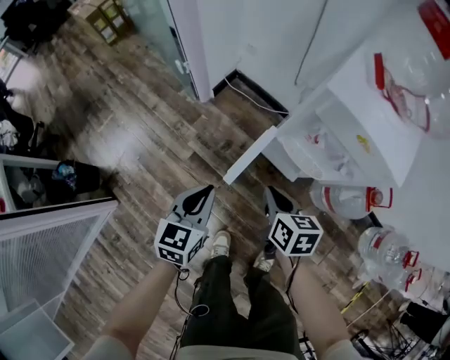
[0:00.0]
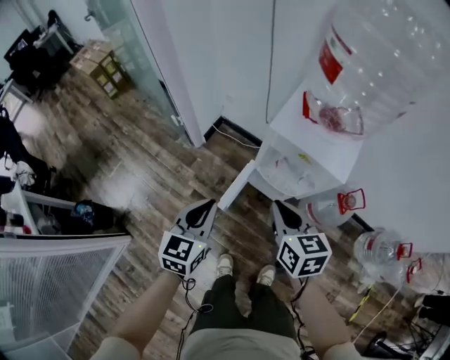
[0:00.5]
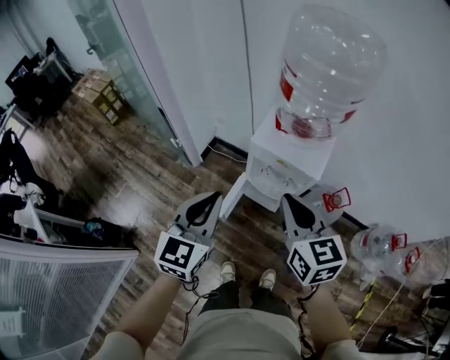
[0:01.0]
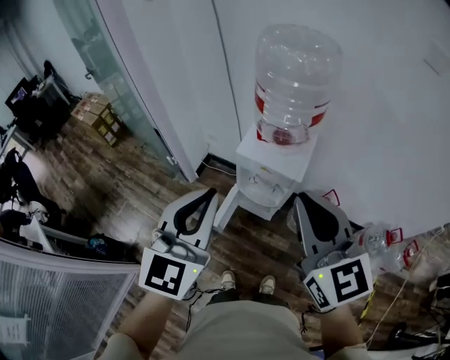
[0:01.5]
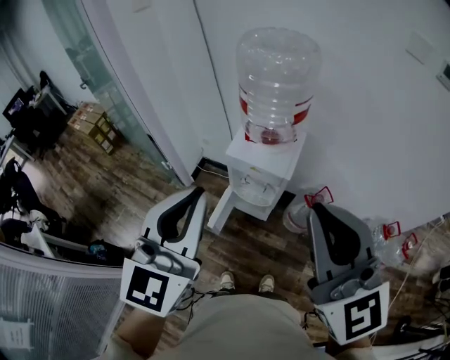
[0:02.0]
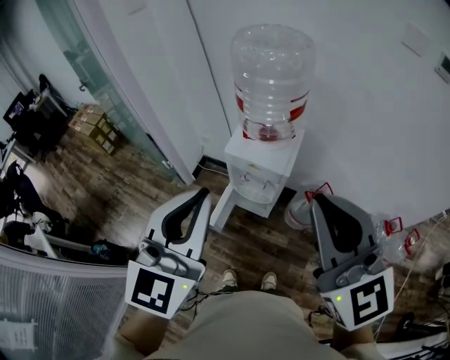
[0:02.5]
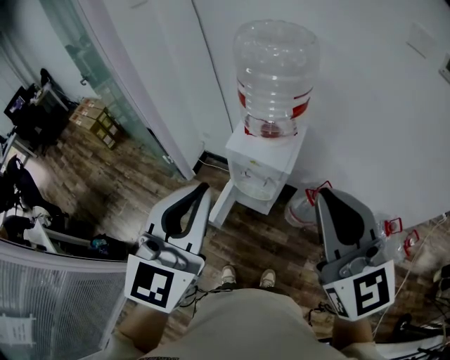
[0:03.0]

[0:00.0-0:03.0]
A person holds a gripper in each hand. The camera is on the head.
0:00.0 to 0:01.5: Both grippers travel together upward, about 60 cm. The left gripper changes its angle by some 40 degrees. The right gripper tilts its fingers approximately 40 degrees upward.
0:01.5 to 0:03.0: The left gripper travels upward by approximately 5 cm, while the right gripper heads to the right and upward, covering some 10 cm.

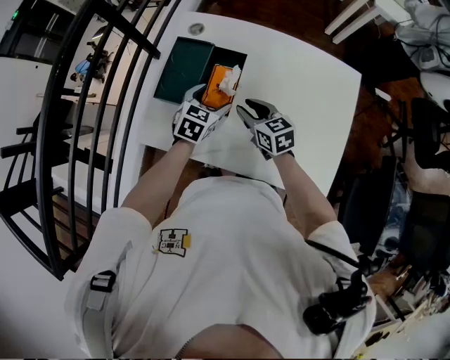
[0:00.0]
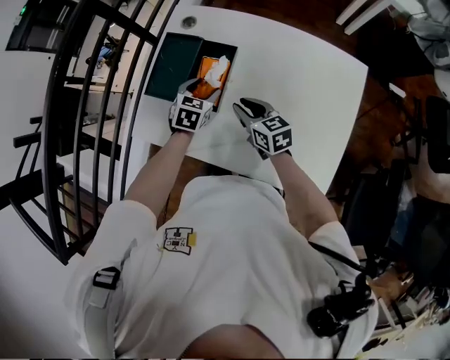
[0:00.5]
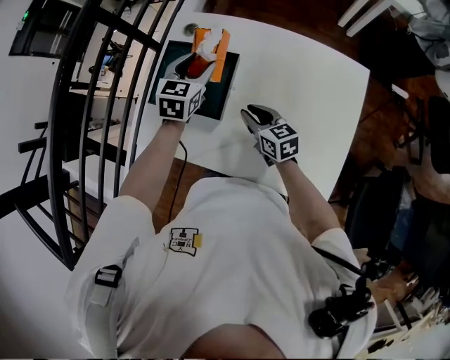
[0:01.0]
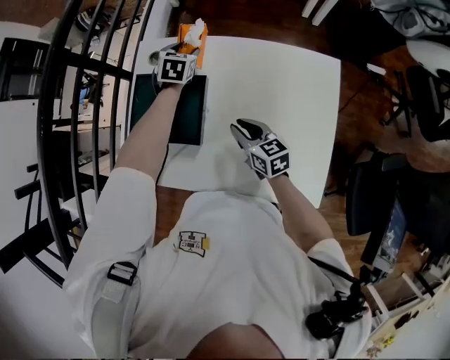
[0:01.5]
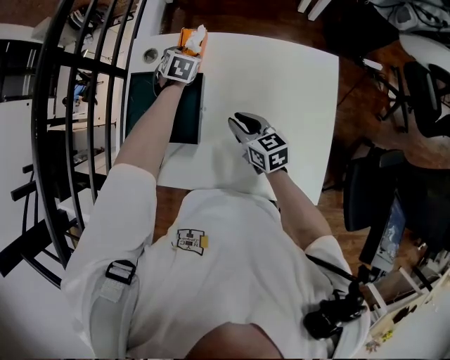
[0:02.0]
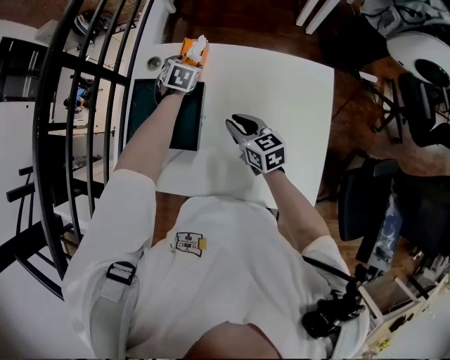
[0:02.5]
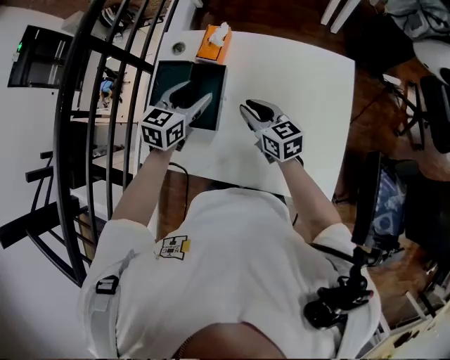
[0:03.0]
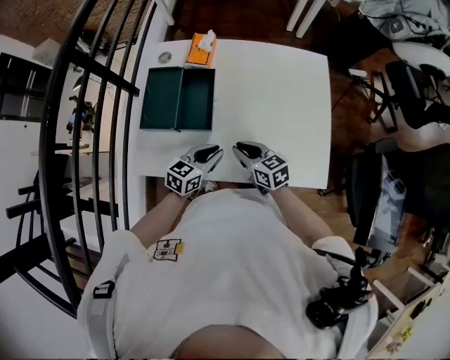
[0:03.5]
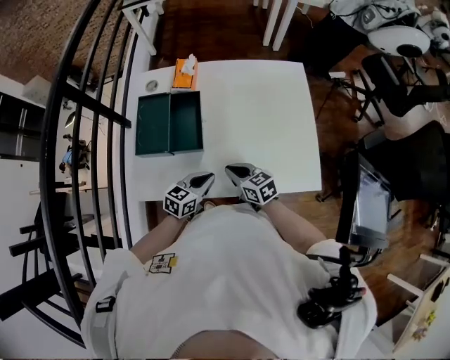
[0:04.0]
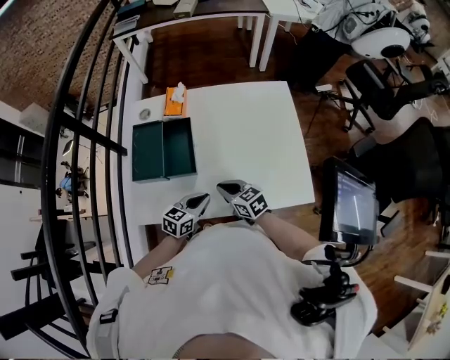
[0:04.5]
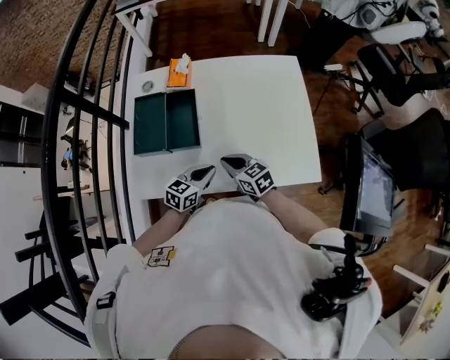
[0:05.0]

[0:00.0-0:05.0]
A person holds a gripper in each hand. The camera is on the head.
0:00.0 to 0:02.5: The left gripper travels forward and to the right by about 25 cm; the right gripper is displaced to the right by roughly 10 cm.
0:02.5 to 0:05.0: The left gripper reaches approximately 15 cm upward, then returns, changes its angle by some 50 degrees, and closes up; the right gripper goes upward and returns, about 5 cm each way.

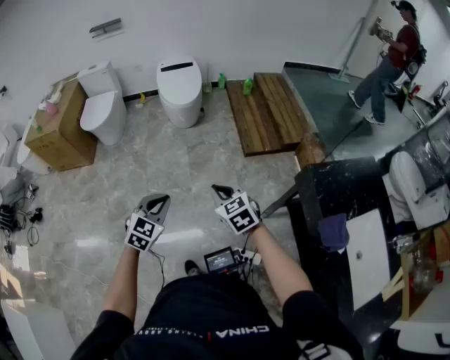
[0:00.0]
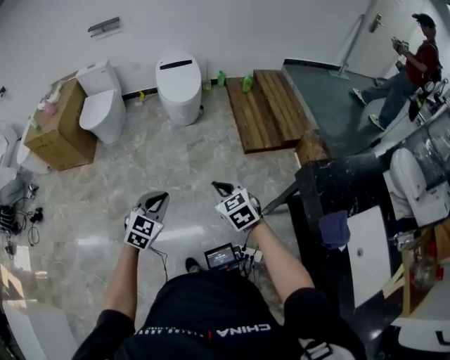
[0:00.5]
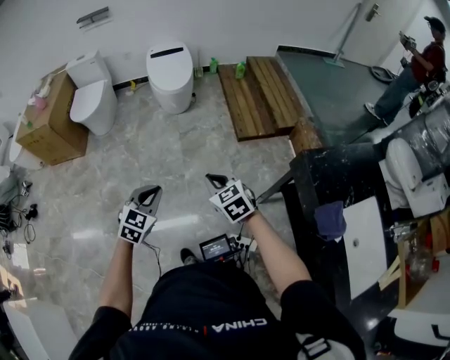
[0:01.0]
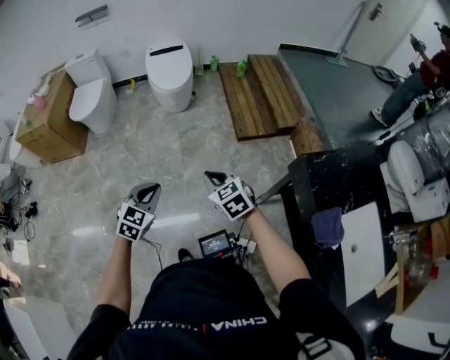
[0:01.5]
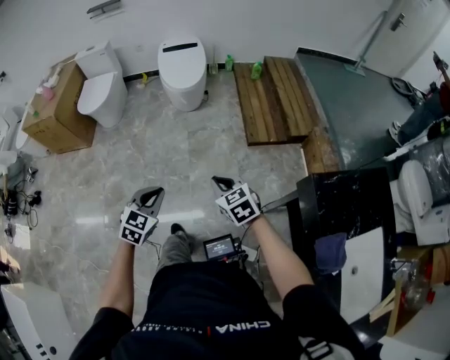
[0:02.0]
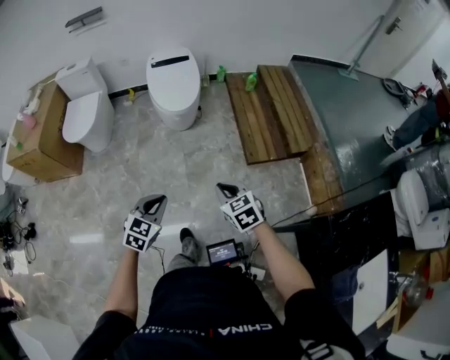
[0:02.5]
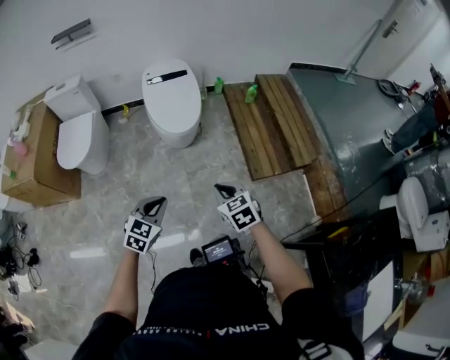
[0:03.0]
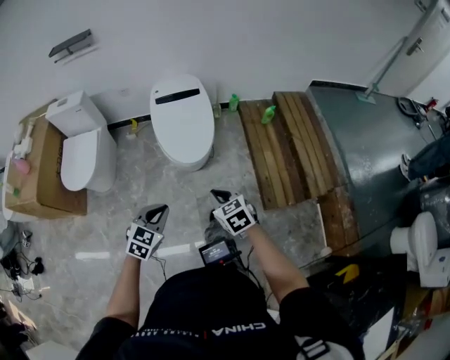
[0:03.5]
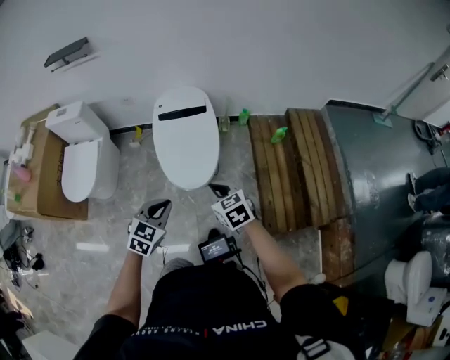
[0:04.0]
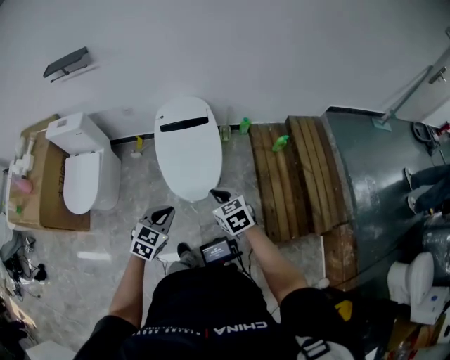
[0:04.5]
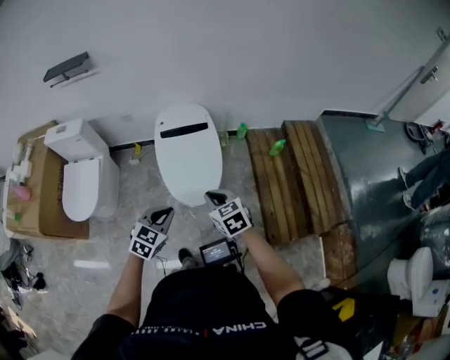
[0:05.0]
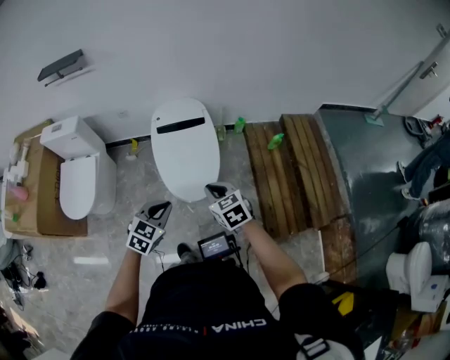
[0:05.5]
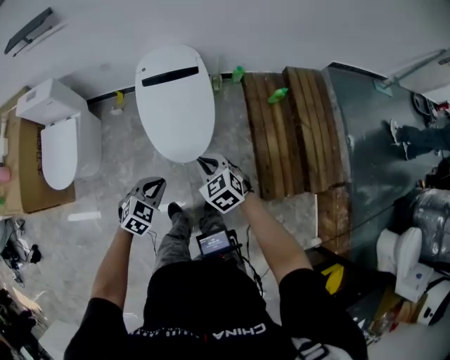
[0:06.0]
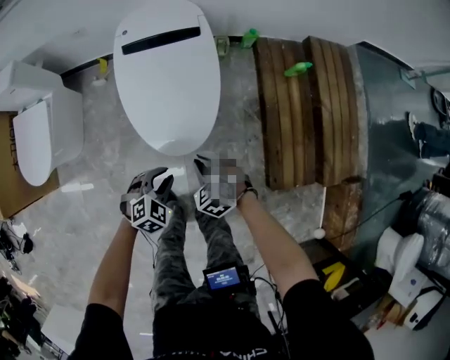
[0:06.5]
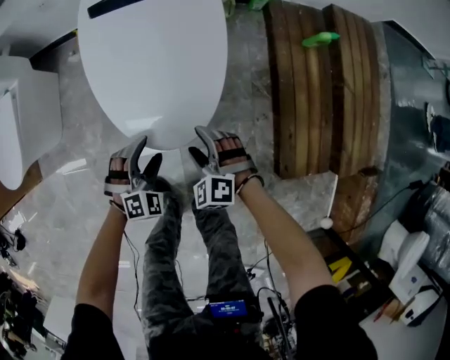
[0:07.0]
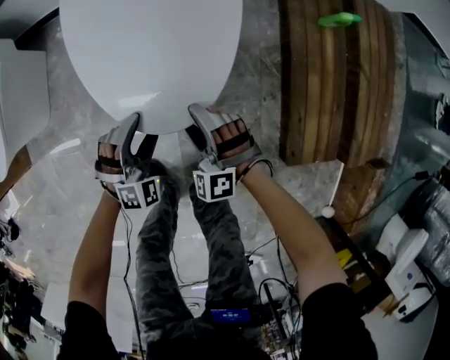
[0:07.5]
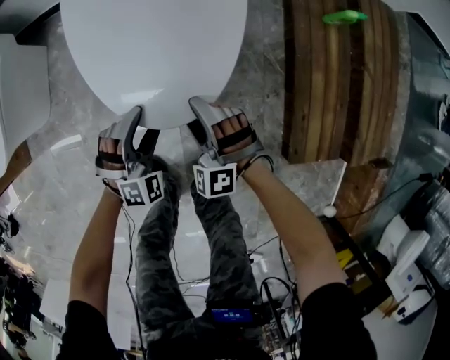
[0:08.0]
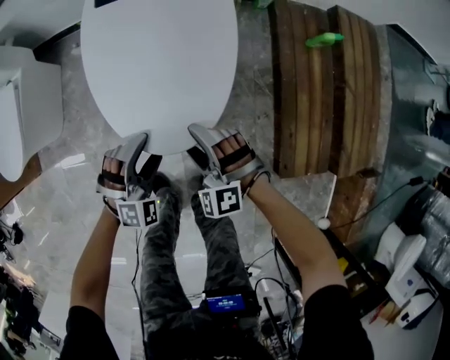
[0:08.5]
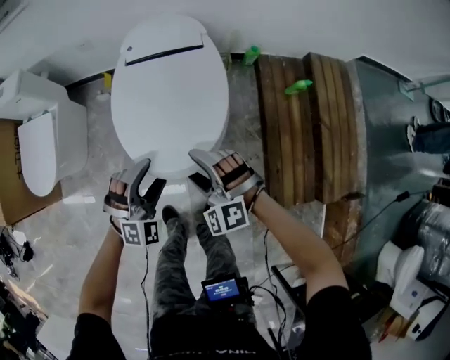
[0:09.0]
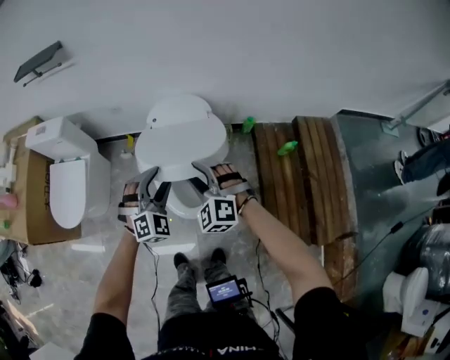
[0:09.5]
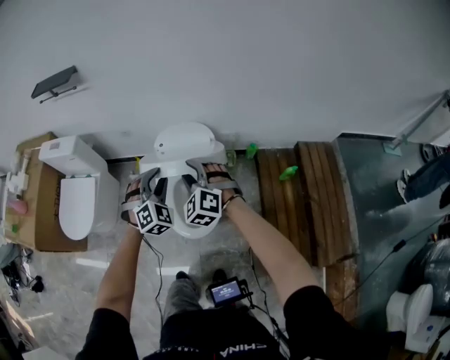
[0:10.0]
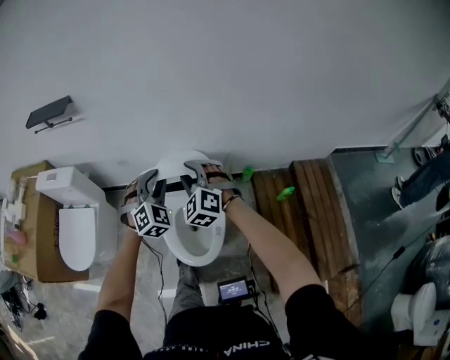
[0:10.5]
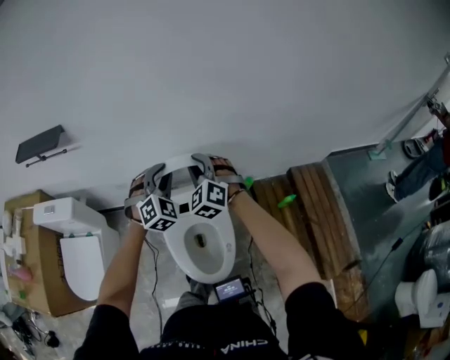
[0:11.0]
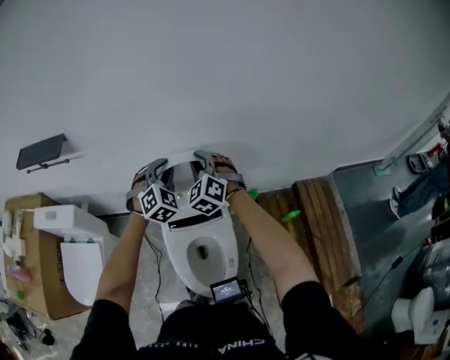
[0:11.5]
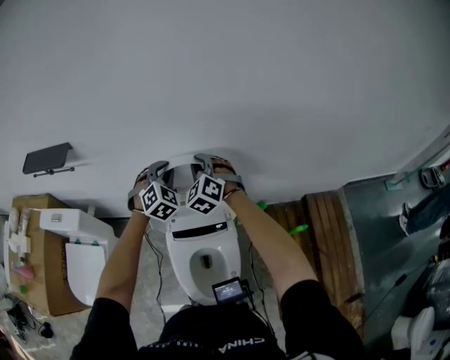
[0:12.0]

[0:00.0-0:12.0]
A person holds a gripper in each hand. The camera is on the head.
0:00.0 to 0:02.0: The right gripper travels forward and downward by approximately 10 cm, while the left gripper shifts some 5 cm forward.
0:02.0 to 0:04.0: The two grippers travel together, forward, approximately 70 cm.
0:04.0 to 0:06.0: The grippers both shift downward and forward by roughly 10 cm.
0:06.0 to 0:08.0: The two grippers go roughly 40 cm downward. The left gripper swivels roughly 40 degrees, and opens. The right gripper twists about 50 degrees counterclockwise, seen from behind, and opens.
0:08.0 to 0:10.0: The grippers both shift upward by some 50 cm. The left gripper swivels about 20 degrees, and closes its fingers. Meanwhile the right gripper closes up.
0:10.0 to 0:12.0: The grippers both shift forward by some 40 cm.

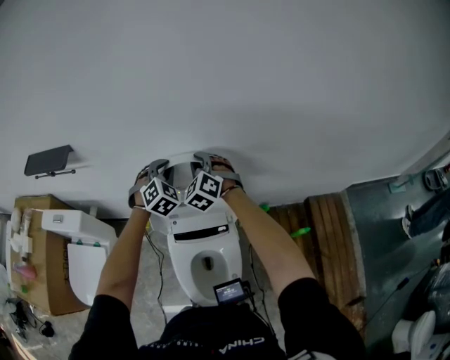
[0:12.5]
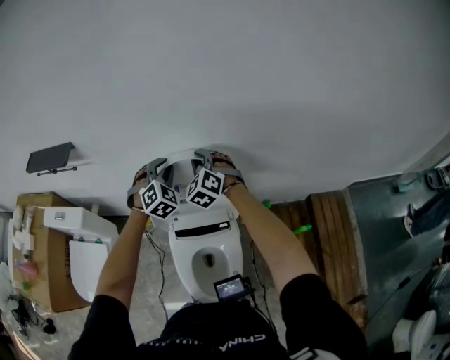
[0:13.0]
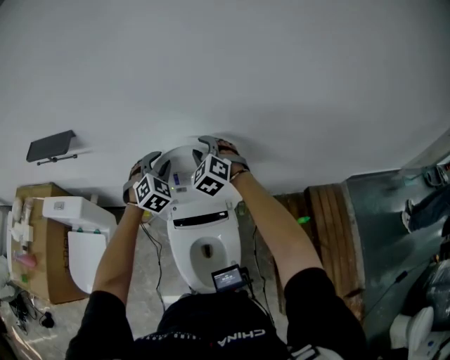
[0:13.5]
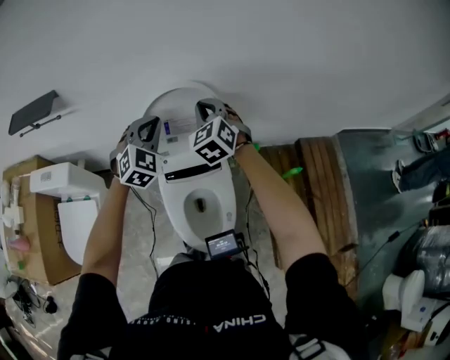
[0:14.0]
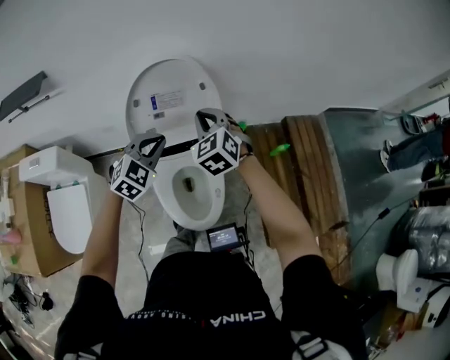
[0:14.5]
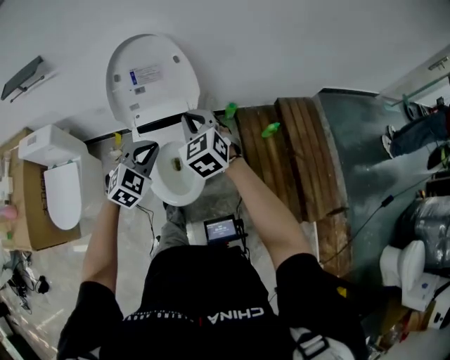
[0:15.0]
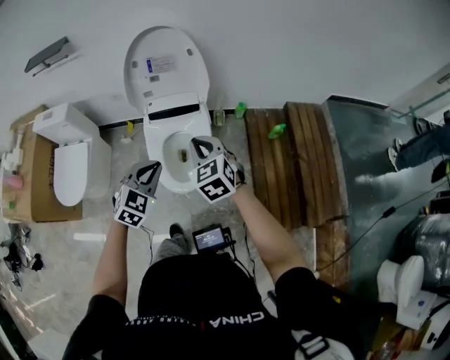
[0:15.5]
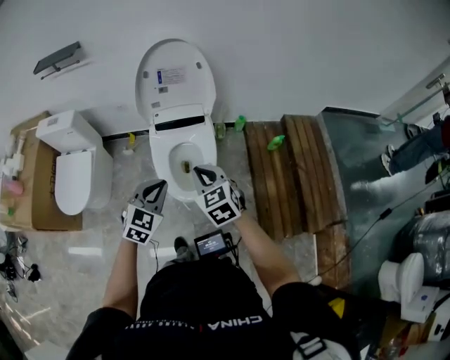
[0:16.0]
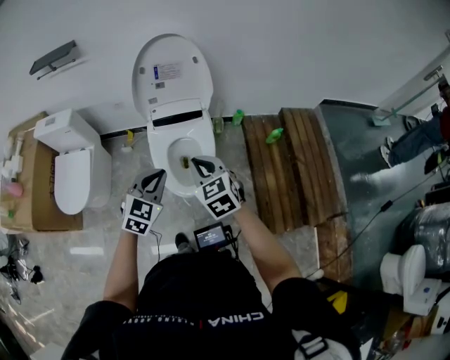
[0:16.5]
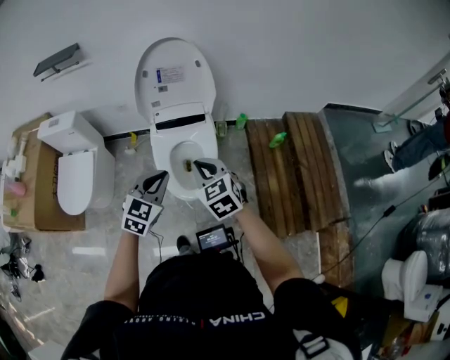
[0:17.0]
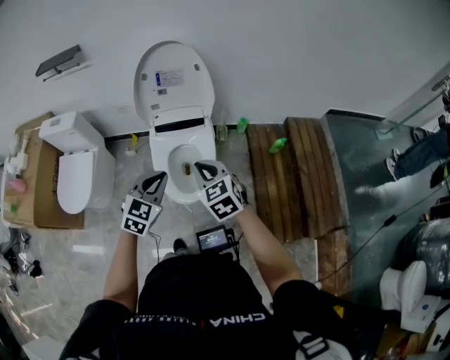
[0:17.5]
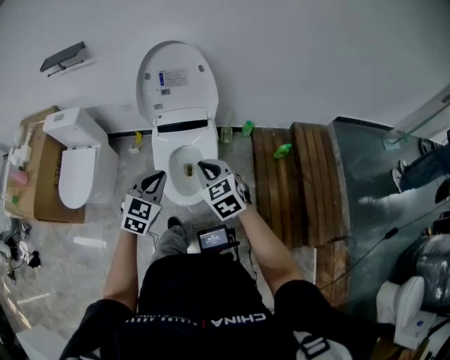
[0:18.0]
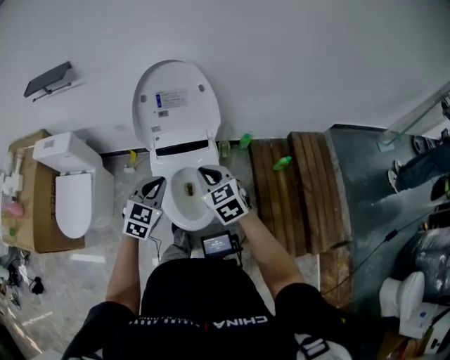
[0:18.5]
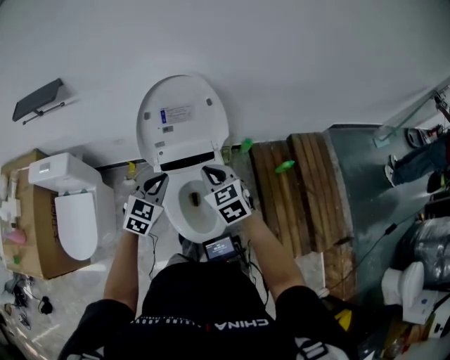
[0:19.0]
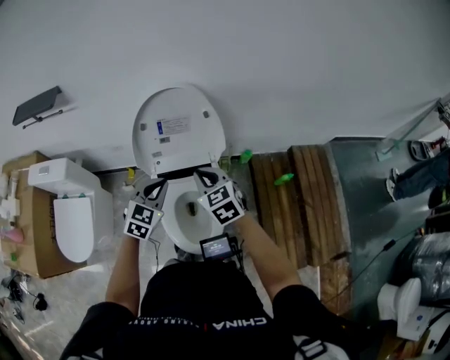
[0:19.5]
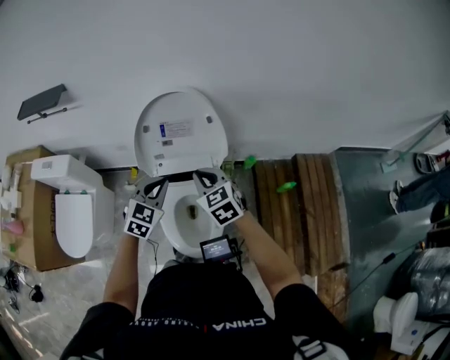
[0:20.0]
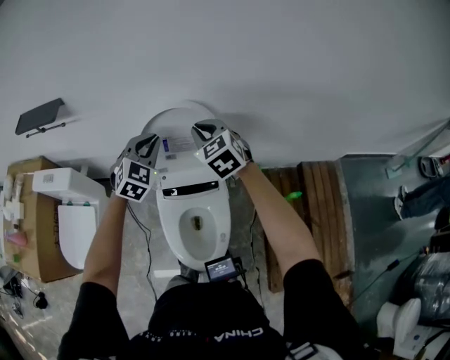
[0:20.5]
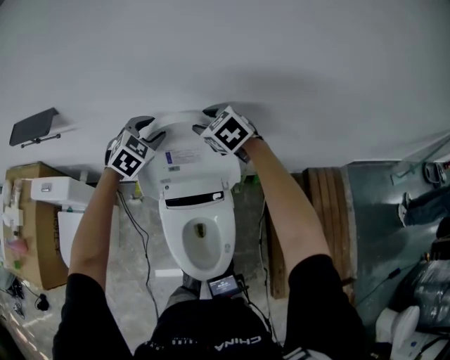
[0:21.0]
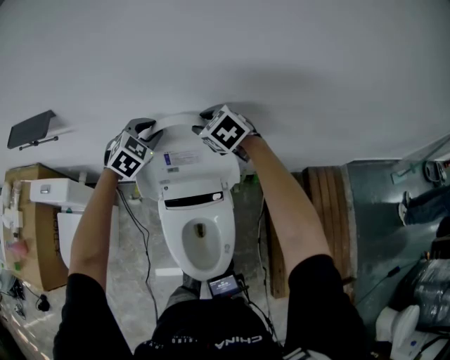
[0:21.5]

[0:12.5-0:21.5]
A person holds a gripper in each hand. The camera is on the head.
0:12.5 to 0:14.5: The two grippers go roughly 25 cm backward. The left gripper changes its angle by about 30 degrees.
0:14.5 to 0:17.0: Both grippers travel together backward, about 35 cm. The left gripper swivels about 20 degrees, while the right gripper rotates about 20 degrees.
0:17.0 to 0:19.5: The two grippers go some 30 cm forward.
0:19.5 to 0:21.5: Both grippers travel together forward, approximately 30 cm. The right gripper swivels about 20 degrees, and opens.
